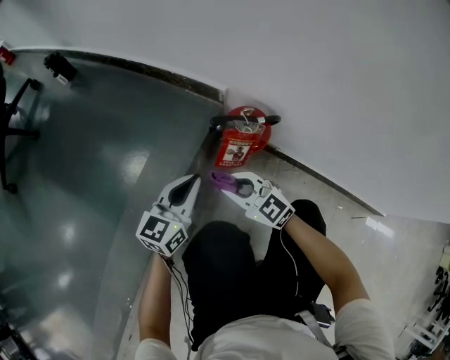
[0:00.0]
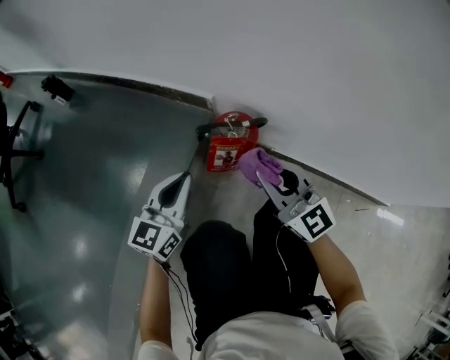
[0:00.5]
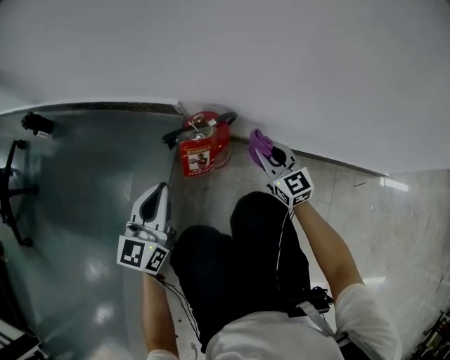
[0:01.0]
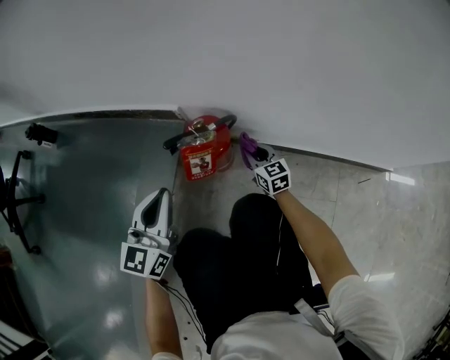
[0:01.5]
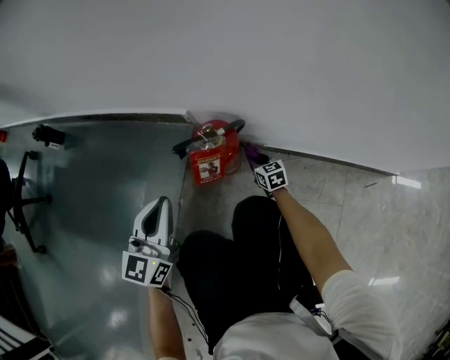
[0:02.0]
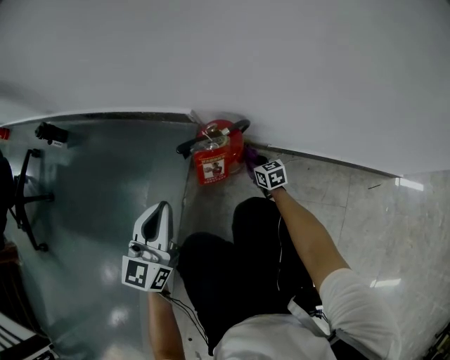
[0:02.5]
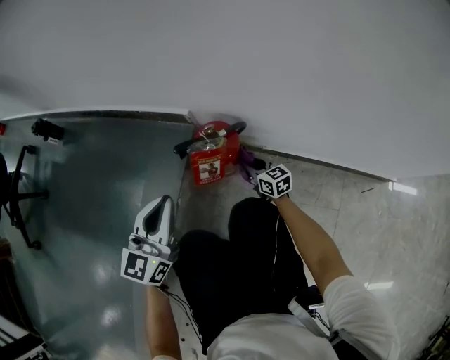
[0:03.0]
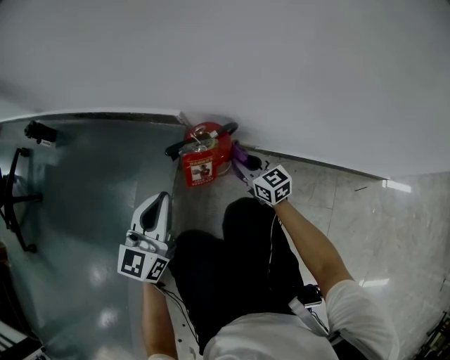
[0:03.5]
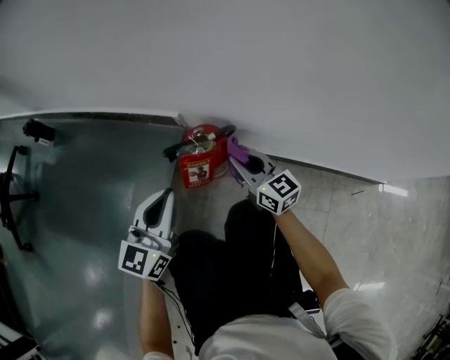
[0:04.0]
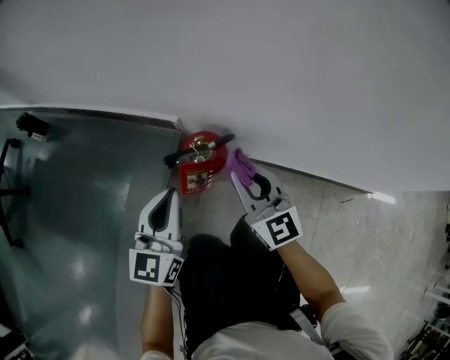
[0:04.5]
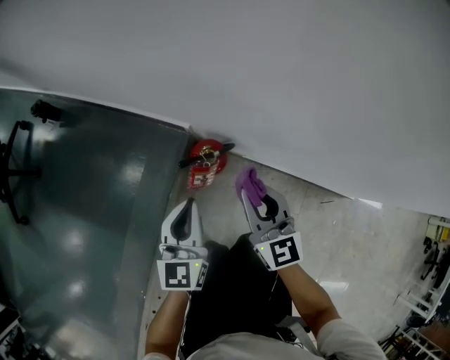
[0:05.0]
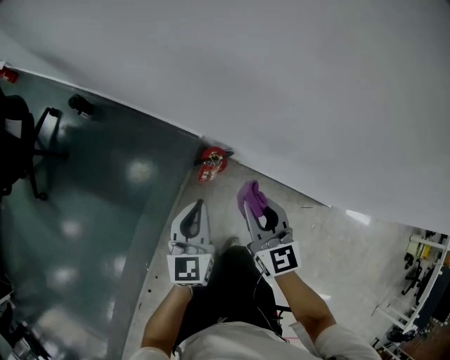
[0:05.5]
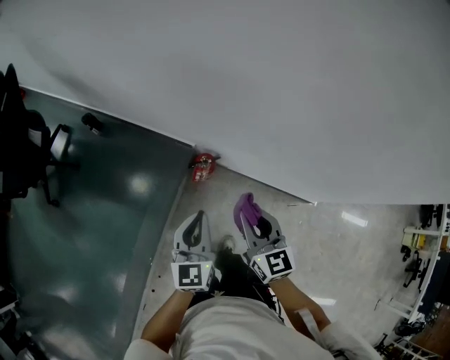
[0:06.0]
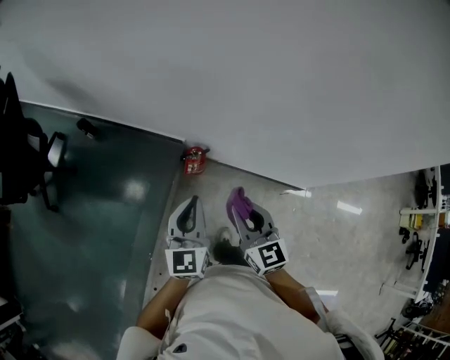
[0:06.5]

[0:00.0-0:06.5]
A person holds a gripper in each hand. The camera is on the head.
0:00.0 to 0:02.0: The right gripper moves downward, to the right and forward, roughly 30 cm, and rotates roughly 50 degrees. The left gripper shifts approximately 10 cm upward.
0:02.0 to 0:04.5: The right gripper travels upward by about 35 cm, and points its fingers about 30 degrees further upward; the left gripper is displaced to the right by roughly 5 cm.
0:04.5 to 0:06.5: The right gripper travels upward and backward by about 60 cm. The left gripper moves upward, roughly 50 cm.

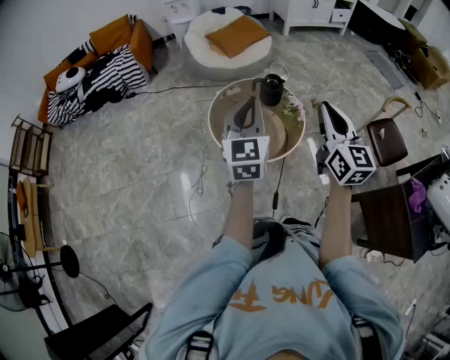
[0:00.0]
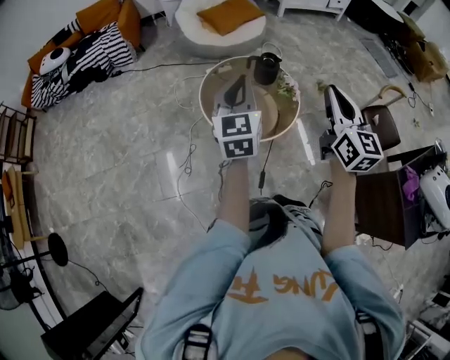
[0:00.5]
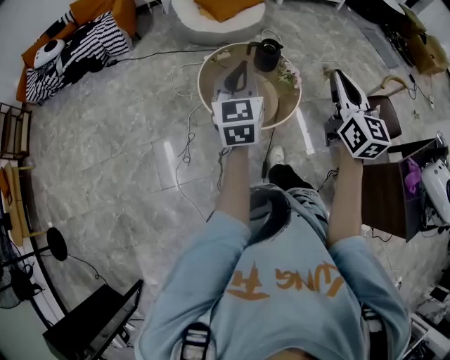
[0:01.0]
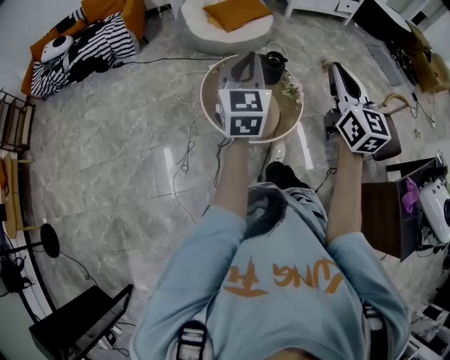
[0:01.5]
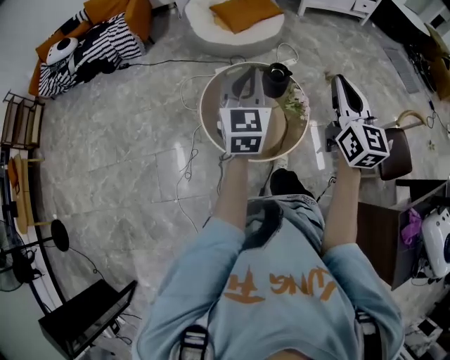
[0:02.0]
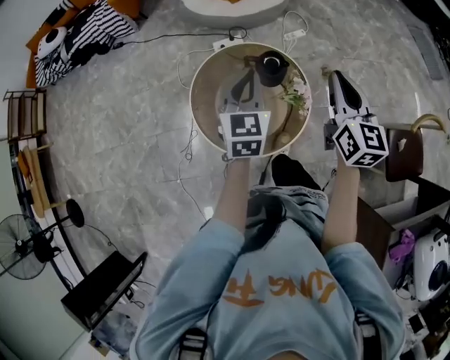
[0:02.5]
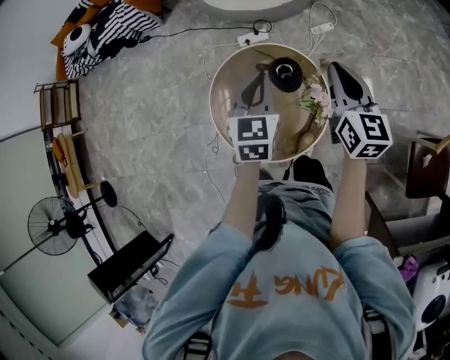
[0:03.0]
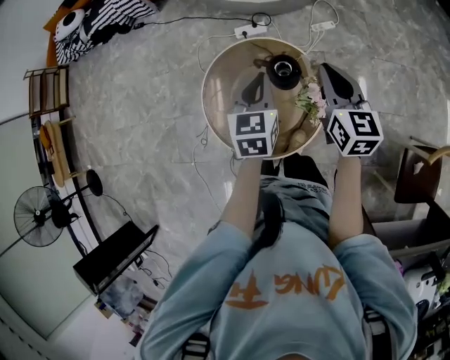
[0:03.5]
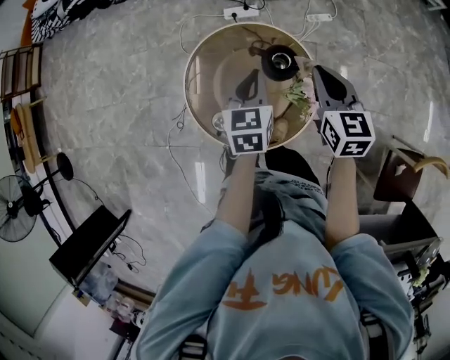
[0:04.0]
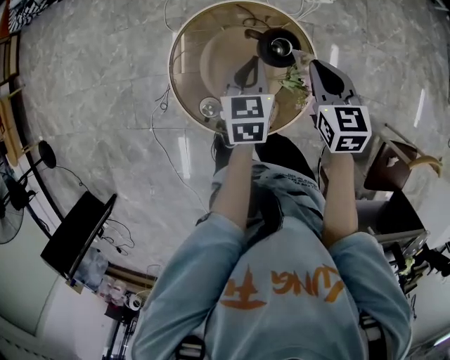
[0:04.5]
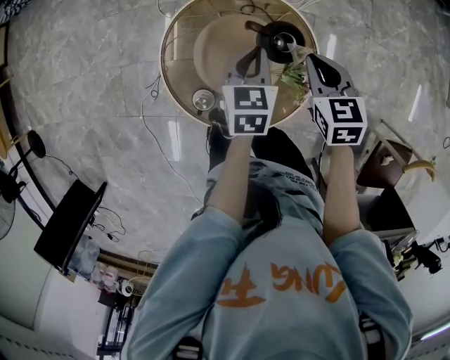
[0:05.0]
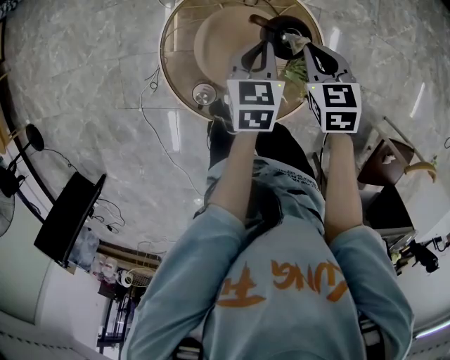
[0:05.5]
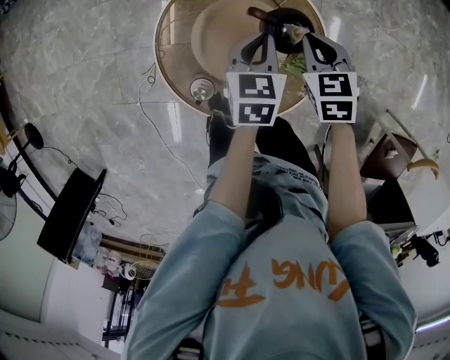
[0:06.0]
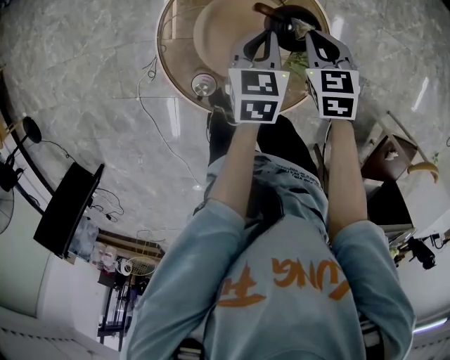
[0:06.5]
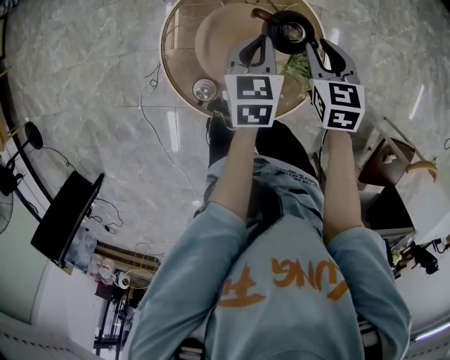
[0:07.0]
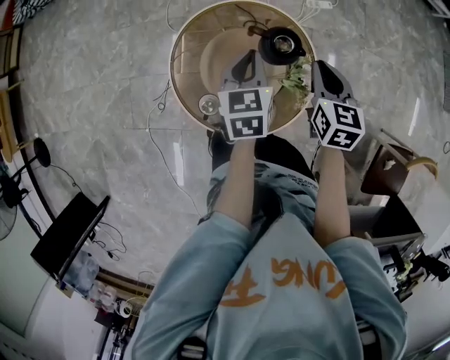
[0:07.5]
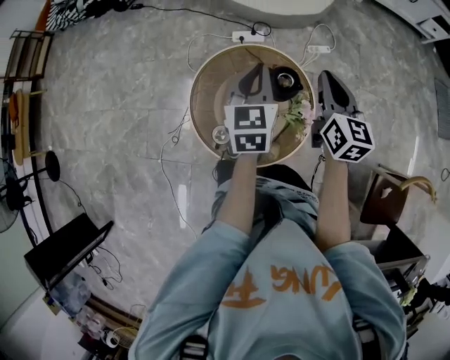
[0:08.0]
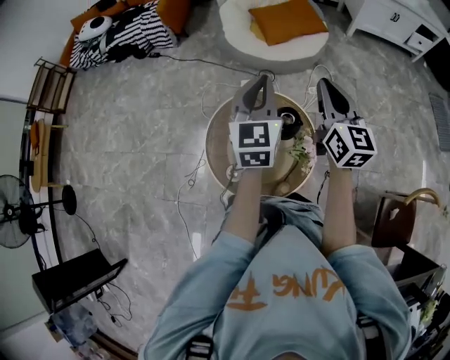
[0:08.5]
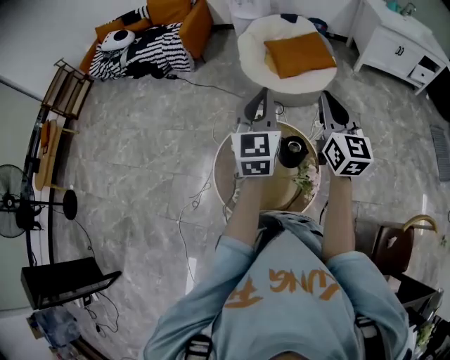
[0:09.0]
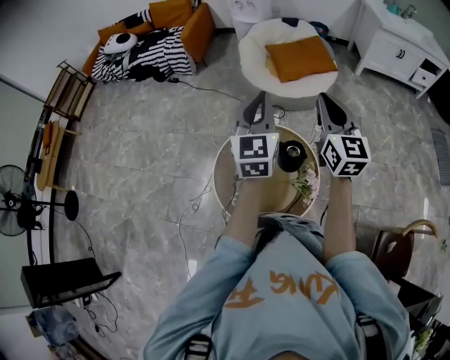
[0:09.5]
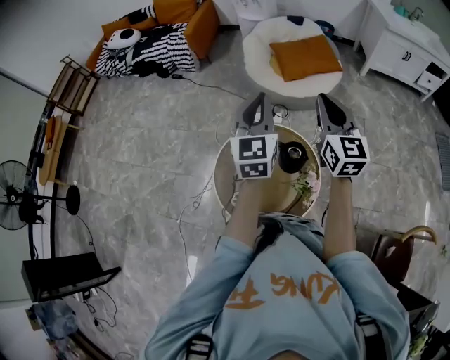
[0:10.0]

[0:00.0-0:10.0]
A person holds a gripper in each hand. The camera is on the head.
0:00.0 to 0:02.0: The two grippers go roughly 20 cm forward.
0:02.0 to 0:04.0: The right gripper heads forward and downward, covering approximately 35 cm, and rotates approximately 40 degrees; the left gripper travels downward, forward and to the right by approximately 35 cm, and turns by approximately 40 degrees.
0:04.0 to 0:06.0: The grippers both shift downward by approximately 15 cm. The right gripper swivels about 30 degrees.
0:06.0 to 0:08.0: Both grippers travel together upward, about 25 cm. The right gripper tips its fingers upward by approximately 40 degrees, and opens and closes again. Meanwhile the left gripper turns by about 20 degrees.
0:08.0 to 0:10.0: Both grippers move upward, roughly 15 cm. The left gripper turns by some 20 degrees. The right gripper turns by some 20 degrees.

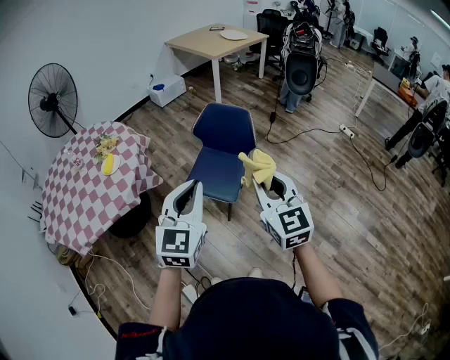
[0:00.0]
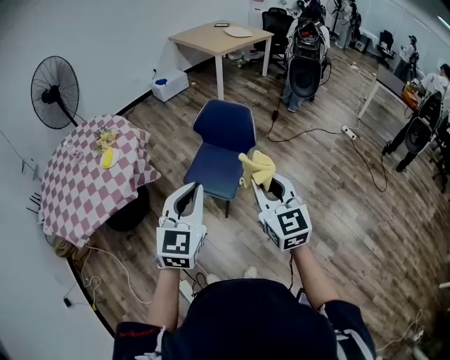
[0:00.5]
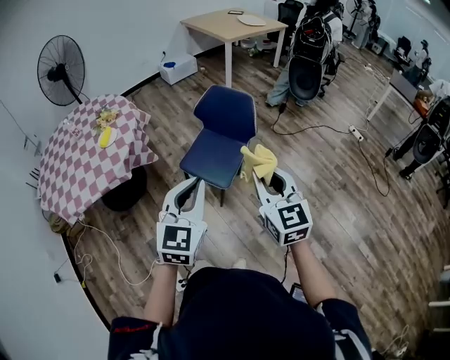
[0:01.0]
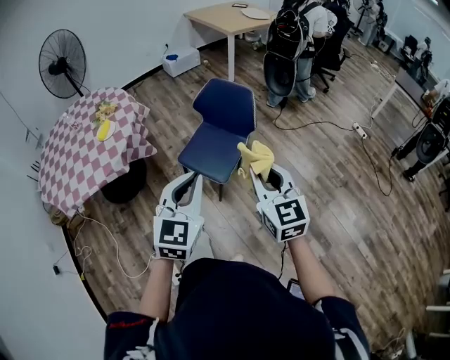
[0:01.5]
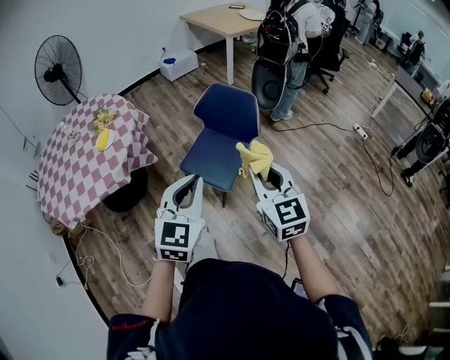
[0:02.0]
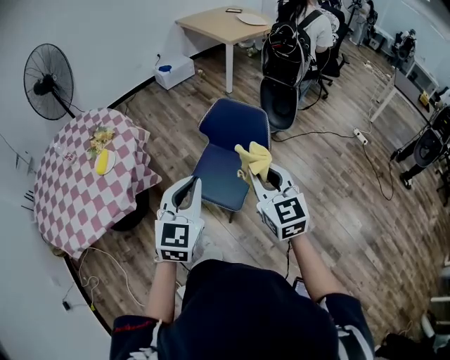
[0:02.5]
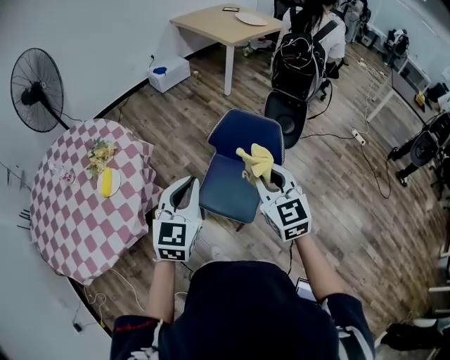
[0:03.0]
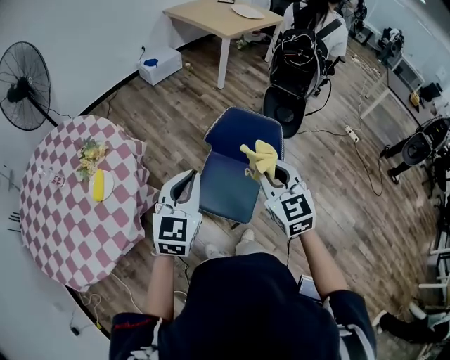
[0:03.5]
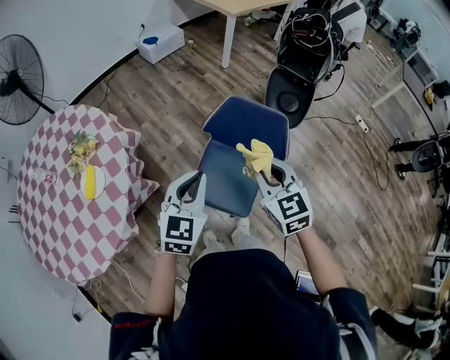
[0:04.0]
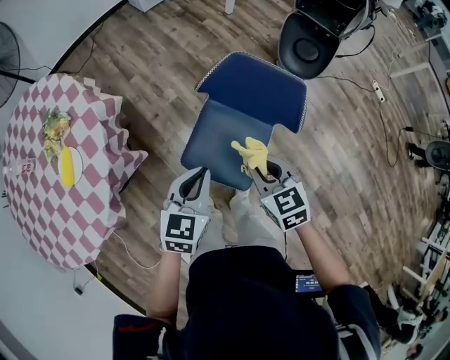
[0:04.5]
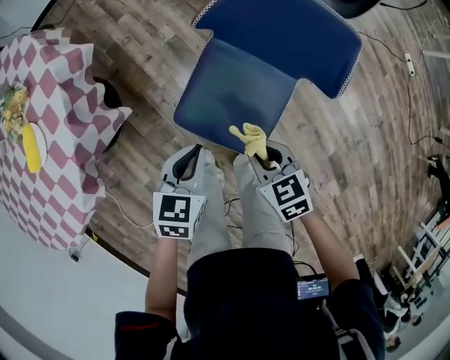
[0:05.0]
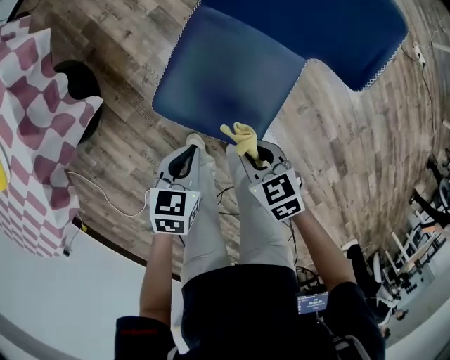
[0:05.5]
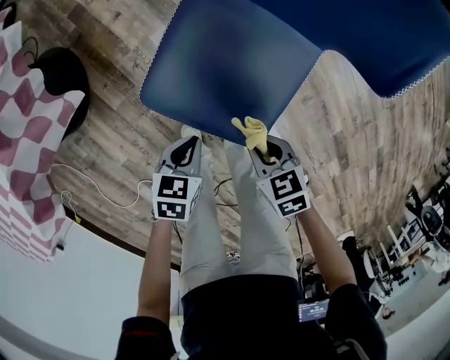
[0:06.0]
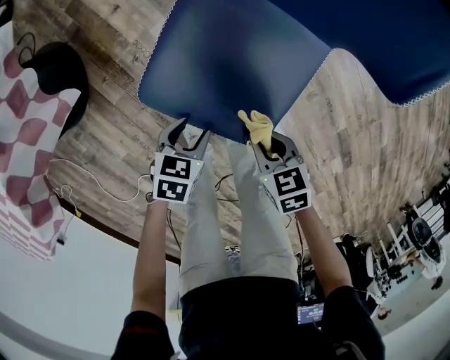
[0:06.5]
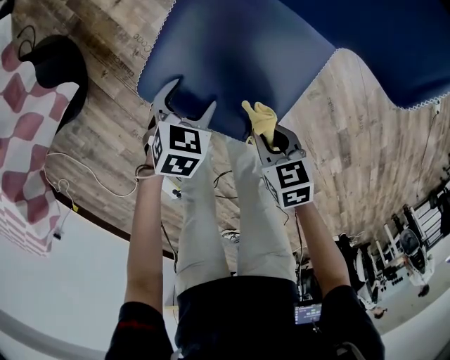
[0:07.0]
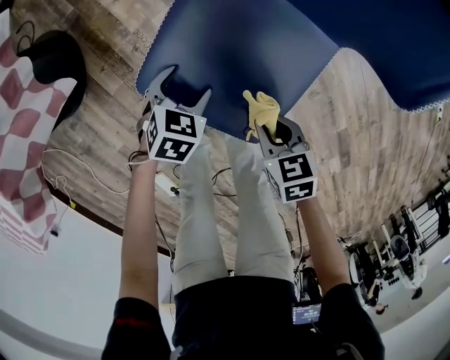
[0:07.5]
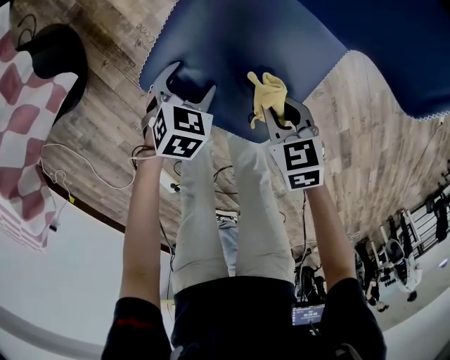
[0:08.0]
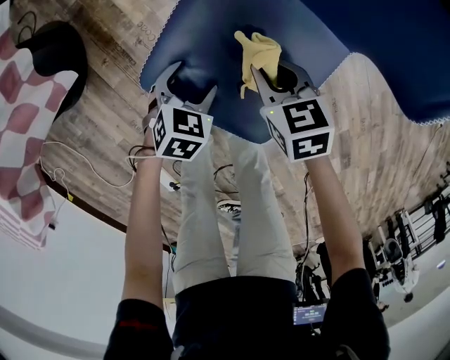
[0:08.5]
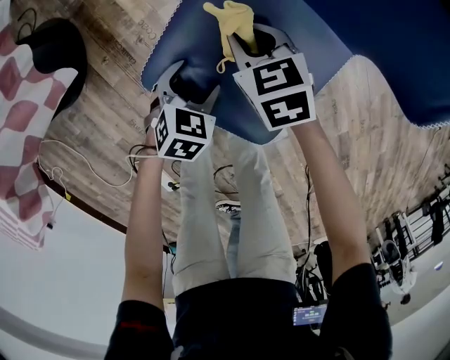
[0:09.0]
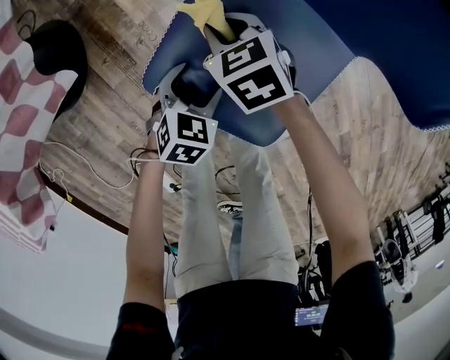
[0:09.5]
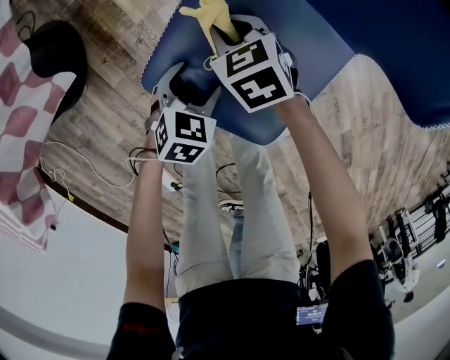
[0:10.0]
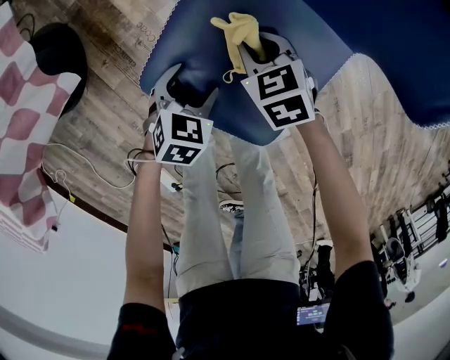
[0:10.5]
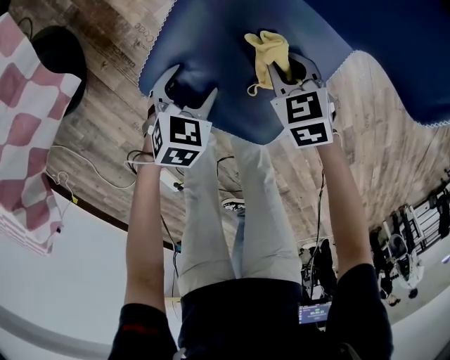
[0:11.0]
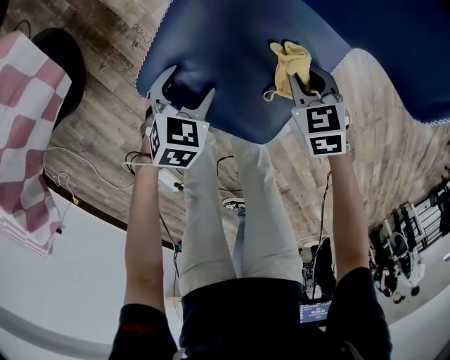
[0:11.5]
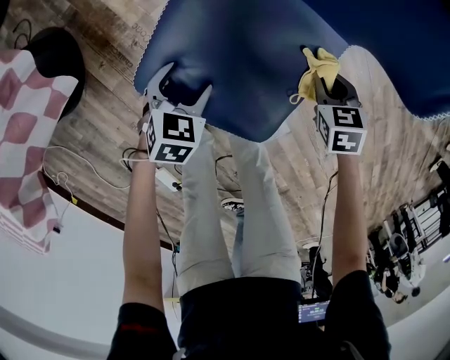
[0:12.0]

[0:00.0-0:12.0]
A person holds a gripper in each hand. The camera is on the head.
0:00.0 to 0:02.0: The right gripper moves downward, forward and to the right, about 10 cm, while the left gripper travels downward and to the right by about 10 cm.
0:02.0 to 0:04.0: Both grippers travel together forward and to the left, some 40 cm.
0:04.0 to 0:06.0: The grippers both shift downward by approximately 60 cm. The left gripper tips its fingers downward by about 40 degrees. The right gripper tilts its fingers some 40 degrees downward.
0:06.0 to 0:08.0: The left gripper shifts roughly 15 cm forward and downward, swivels roughly 20 degrees, and opens; the right gripper moves forward, about 10 cm.
0:08.0 to 0:10.0: The right gripper heads forward and to the left, covering approximately 20 cm.
0:10.0 to 0:12.0: The right gripper shifts some 25 cm to the right, and rotates about 20 degrees.
